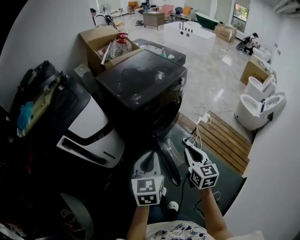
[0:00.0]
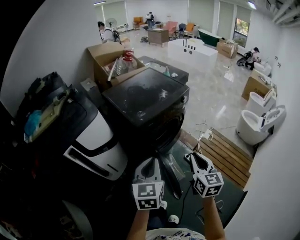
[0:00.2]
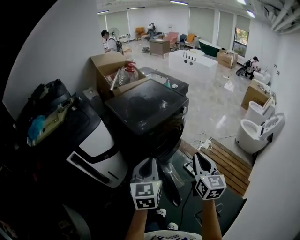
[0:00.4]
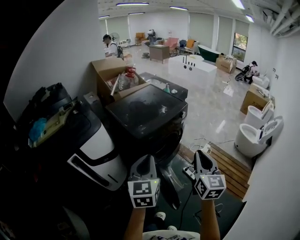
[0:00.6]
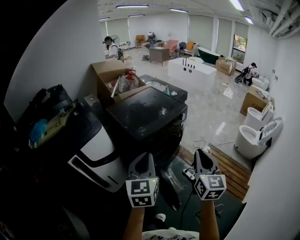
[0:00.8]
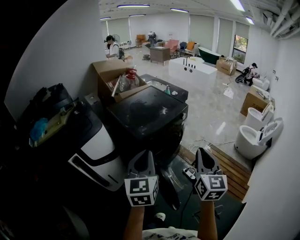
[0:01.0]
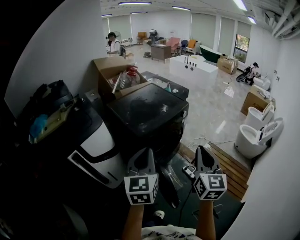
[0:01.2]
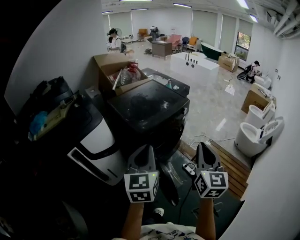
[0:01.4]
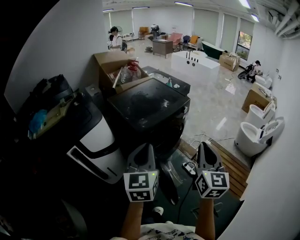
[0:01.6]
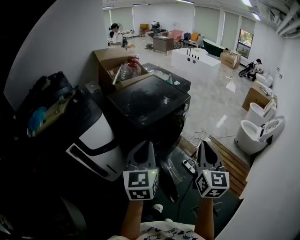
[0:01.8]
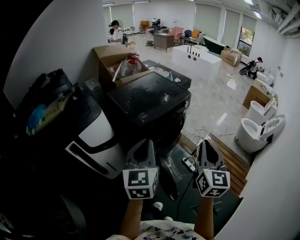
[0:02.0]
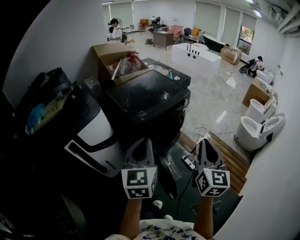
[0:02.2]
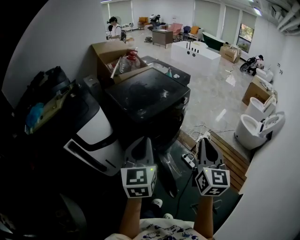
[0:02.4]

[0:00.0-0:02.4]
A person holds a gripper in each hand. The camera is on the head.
0:00.0 to 0:01.2: The grippers both shift upward by approximately 20 cm. The right gripper turns by roughly 20 degrees.
0:01.2 to 0:02.4: The grippers move only a little.

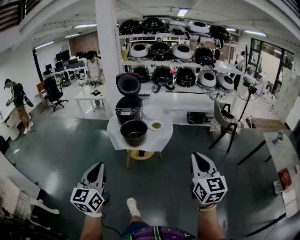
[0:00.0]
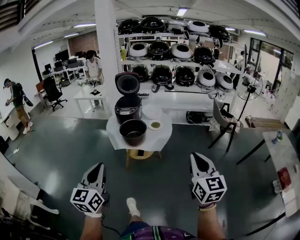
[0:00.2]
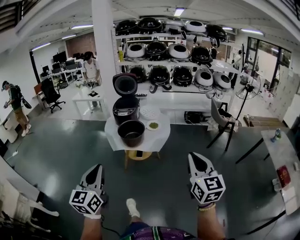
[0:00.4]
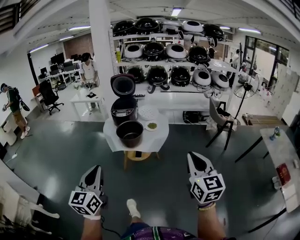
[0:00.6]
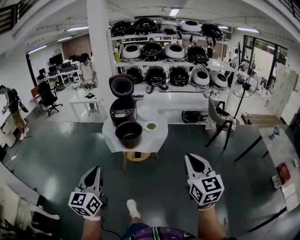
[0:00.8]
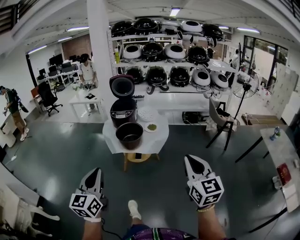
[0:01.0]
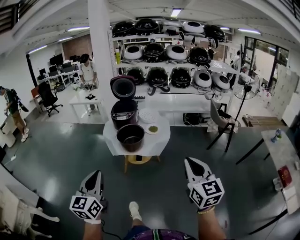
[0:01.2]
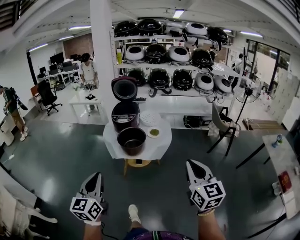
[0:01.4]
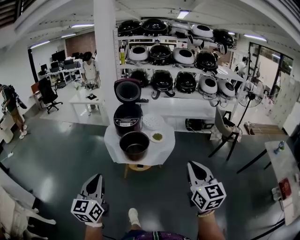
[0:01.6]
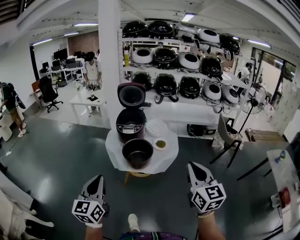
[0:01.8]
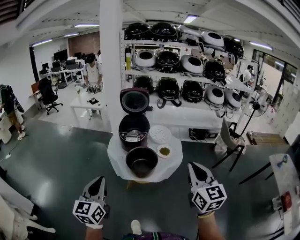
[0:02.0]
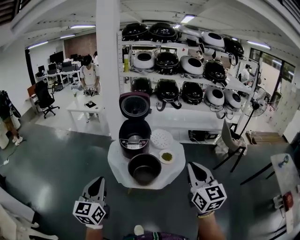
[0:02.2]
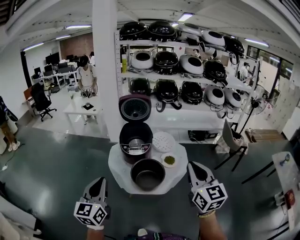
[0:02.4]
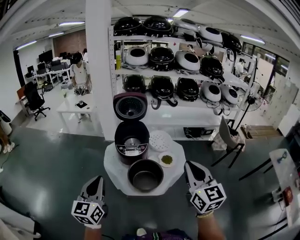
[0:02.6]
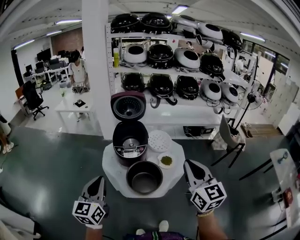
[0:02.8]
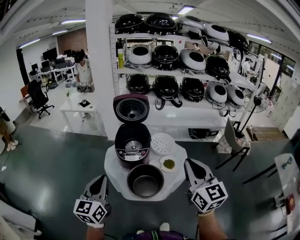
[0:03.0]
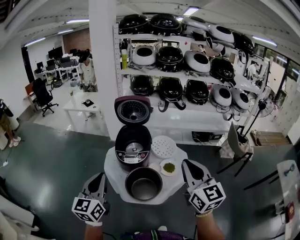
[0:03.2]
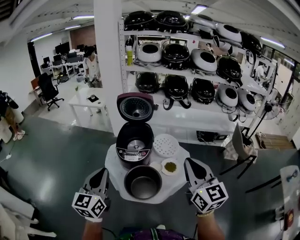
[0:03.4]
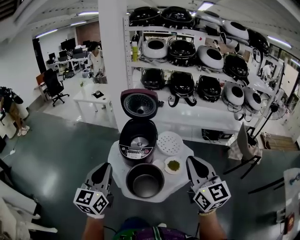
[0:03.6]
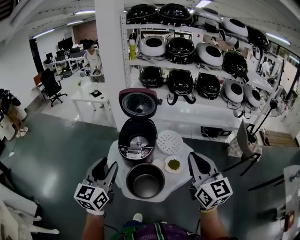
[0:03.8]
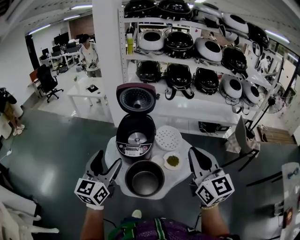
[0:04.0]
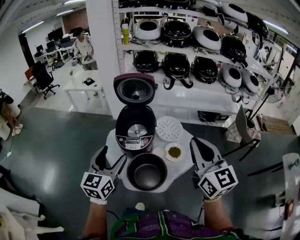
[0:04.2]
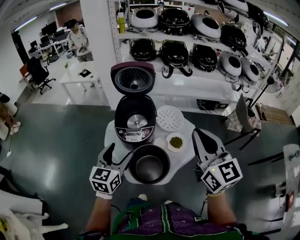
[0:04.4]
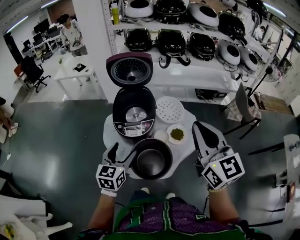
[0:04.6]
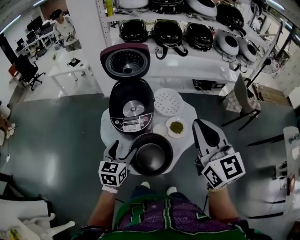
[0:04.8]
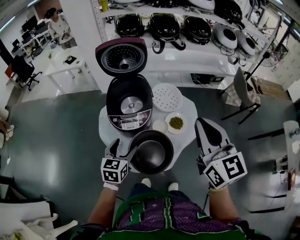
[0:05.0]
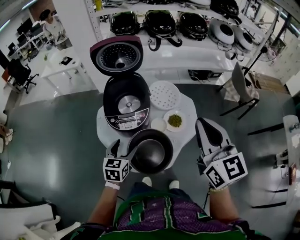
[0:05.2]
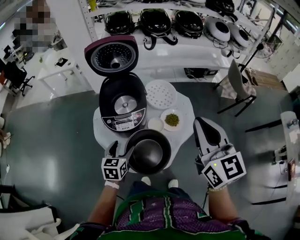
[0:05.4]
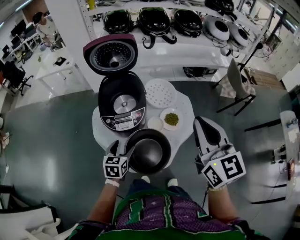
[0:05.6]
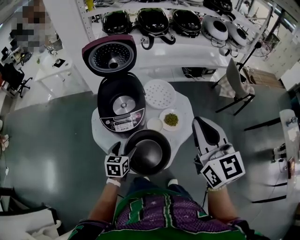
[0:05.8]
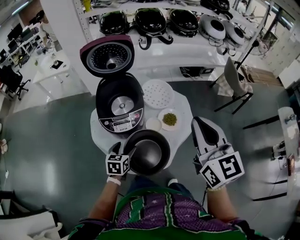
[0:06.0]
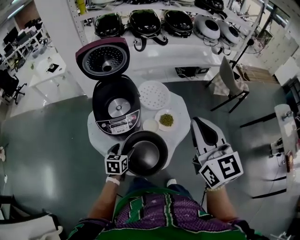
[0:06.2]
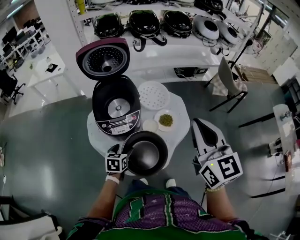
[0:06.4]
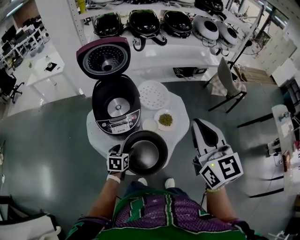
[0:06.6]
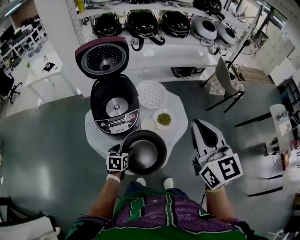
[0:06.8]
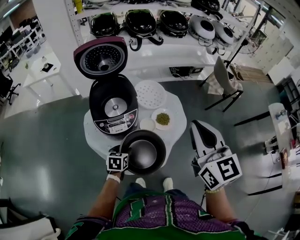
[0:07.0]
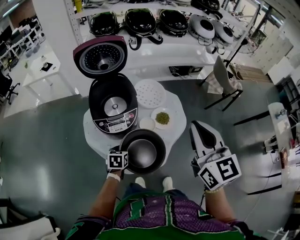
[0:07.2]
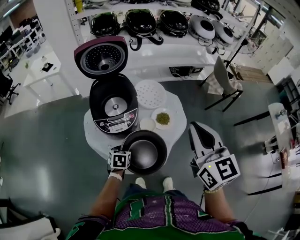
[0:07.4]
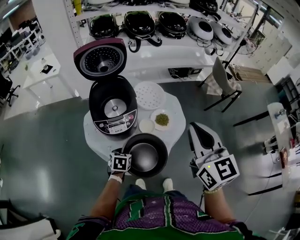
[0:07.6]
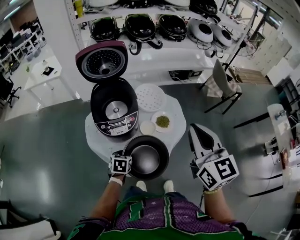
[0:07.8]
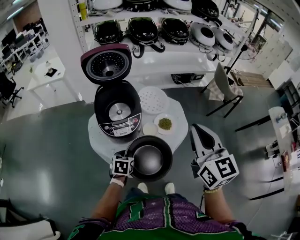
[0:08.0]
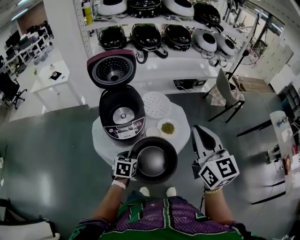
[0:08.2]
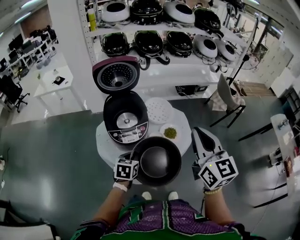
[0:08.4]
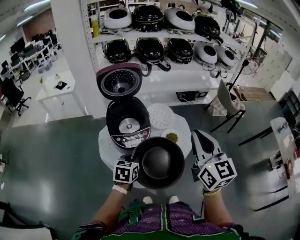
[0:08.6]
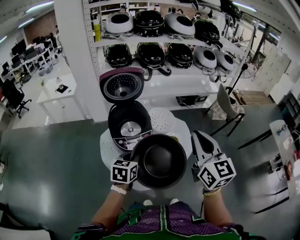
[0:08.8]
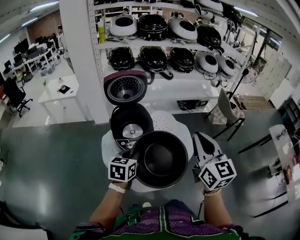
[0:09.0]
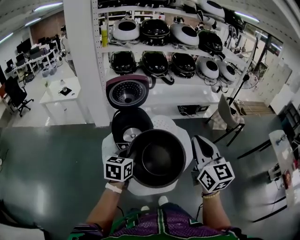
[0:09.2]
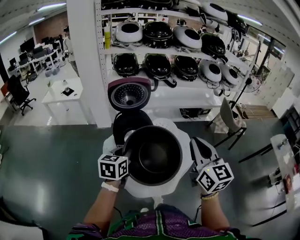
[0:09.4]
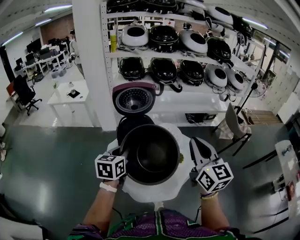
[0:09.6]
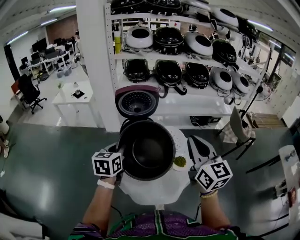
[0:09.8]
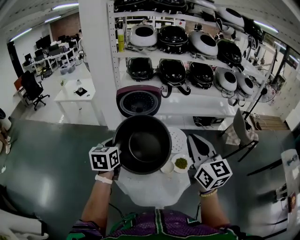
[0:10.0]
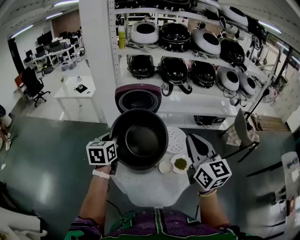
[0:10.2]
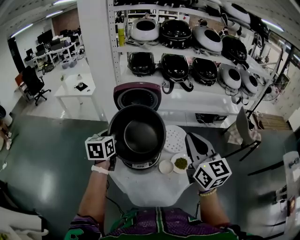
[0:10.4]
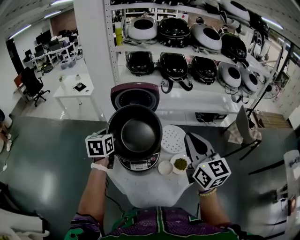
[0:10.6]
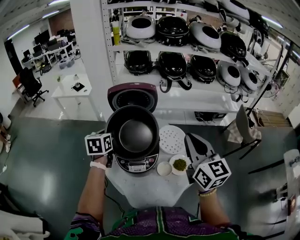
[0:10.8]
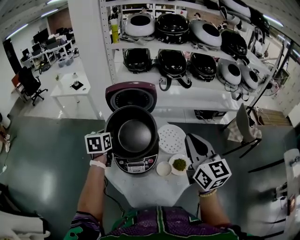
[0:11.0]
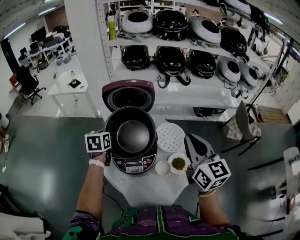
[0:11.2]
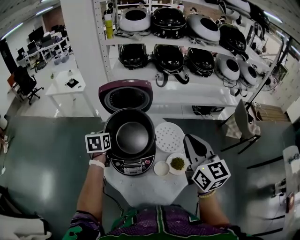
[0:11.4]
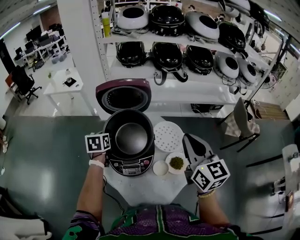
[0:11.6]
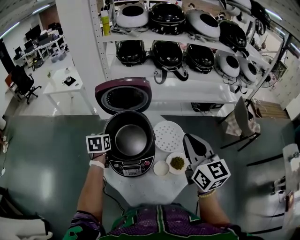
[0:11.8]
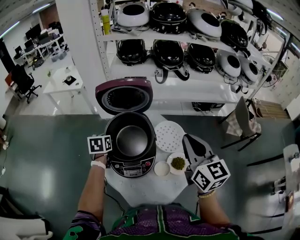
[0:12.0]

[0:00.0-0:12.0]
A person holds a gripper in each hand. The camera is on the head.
0:00.0 to 0:01.6: The grippers both shift forward and to the left by roughly 15 cm.
0:01.6 to 0:03.0: Both grippers travel together forward, some 35 cm.
0:03.0 to 0:04.4: The right gripper travels forward by some 10 cm; the left gripper shifts roughly 20 cm forward, downward and to the right, and opens up.
0:04.4 to 0:06.0: The right gripper moves downward, approximately 10 cm. Meanwhile the left gripper shifts approximately 25 cm downward, and swivels roughly 30 degrees.
0:06.0 to 0:07.6: The left gripper closes its fingers.
0:07.6 to 0:09.0: The left gripper is displaced upward by some 25 cm, and changes its angle by roughly 30 degrees, while the right gripper shifts by roughly 5 cm.
0:09.0 to 0:10.4: The right gripper moves forward, approximately 15 cm; the left gripper goes some 20 cm forward, to the left and upward, and swivels approximately 20 degrees.
0:10.4 to 0:12.0: The right gripper is displaced forward and downward by roughly 10 cm. The left gripper is displaced downward and forward by approximately 20 cm.

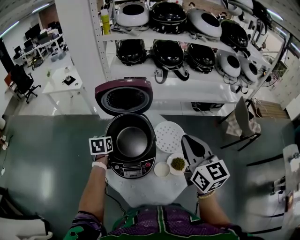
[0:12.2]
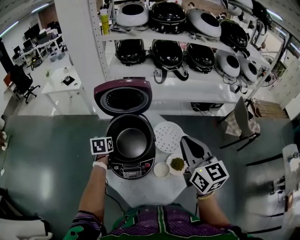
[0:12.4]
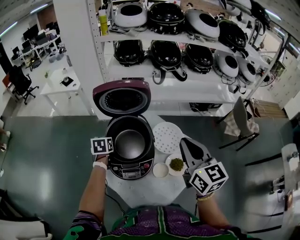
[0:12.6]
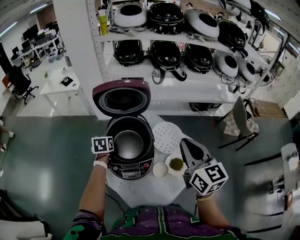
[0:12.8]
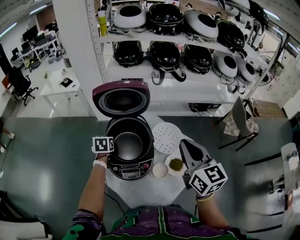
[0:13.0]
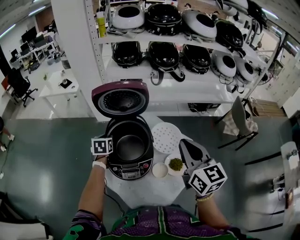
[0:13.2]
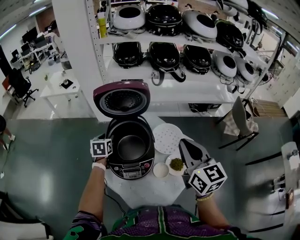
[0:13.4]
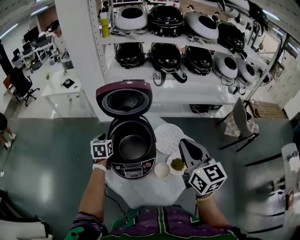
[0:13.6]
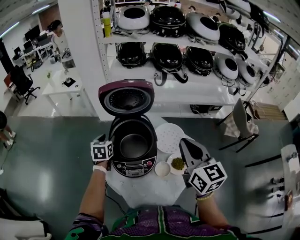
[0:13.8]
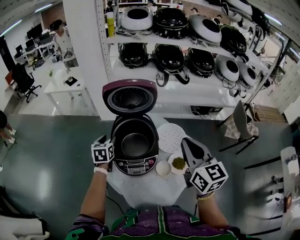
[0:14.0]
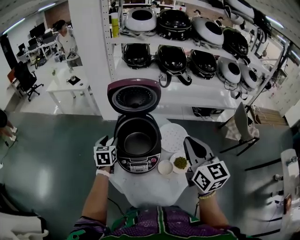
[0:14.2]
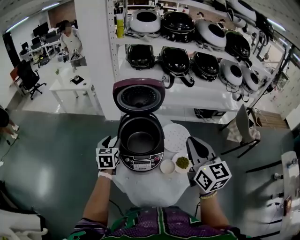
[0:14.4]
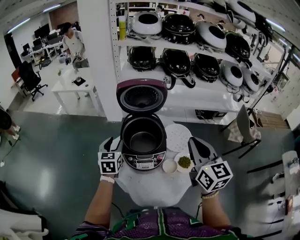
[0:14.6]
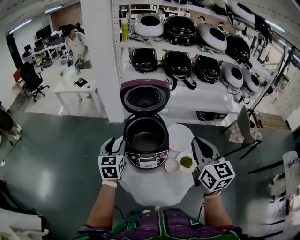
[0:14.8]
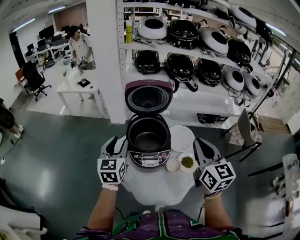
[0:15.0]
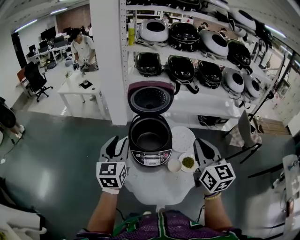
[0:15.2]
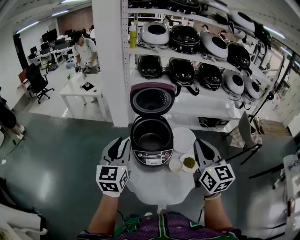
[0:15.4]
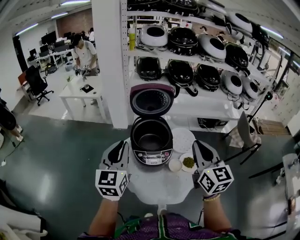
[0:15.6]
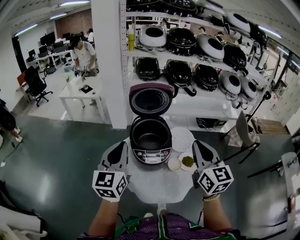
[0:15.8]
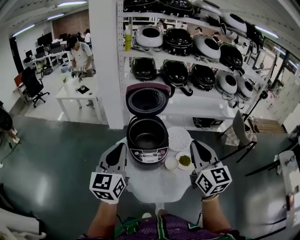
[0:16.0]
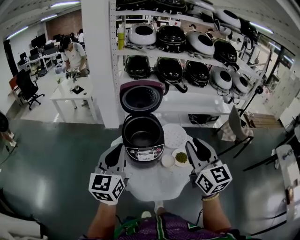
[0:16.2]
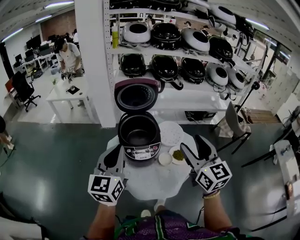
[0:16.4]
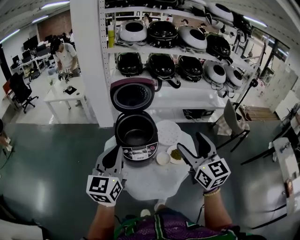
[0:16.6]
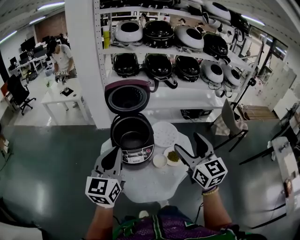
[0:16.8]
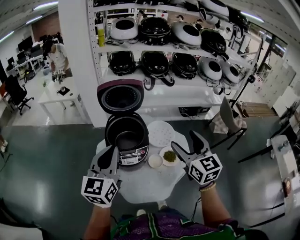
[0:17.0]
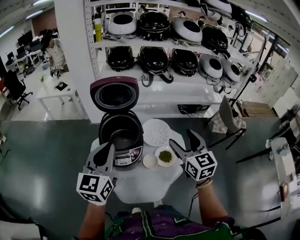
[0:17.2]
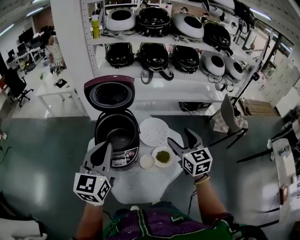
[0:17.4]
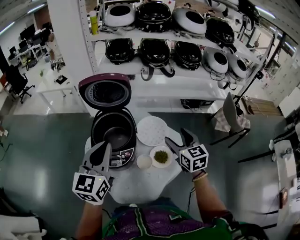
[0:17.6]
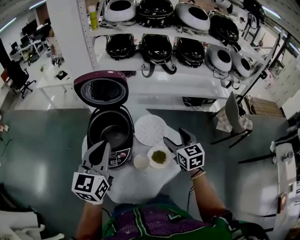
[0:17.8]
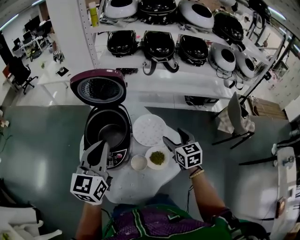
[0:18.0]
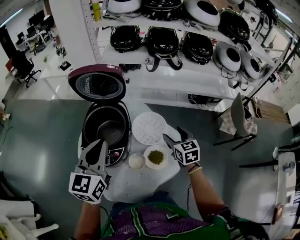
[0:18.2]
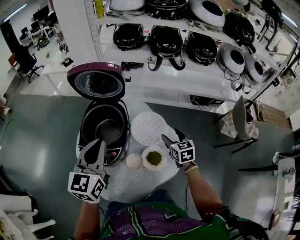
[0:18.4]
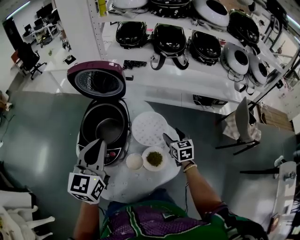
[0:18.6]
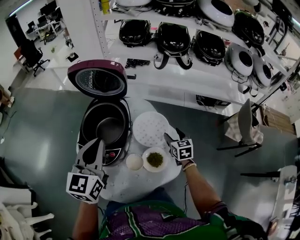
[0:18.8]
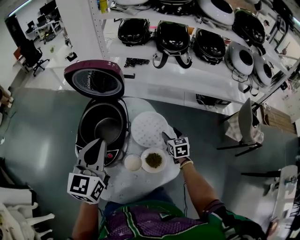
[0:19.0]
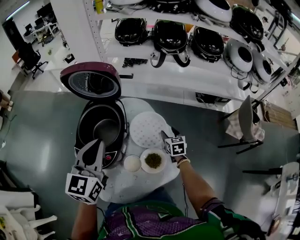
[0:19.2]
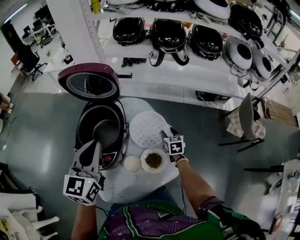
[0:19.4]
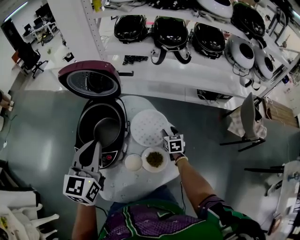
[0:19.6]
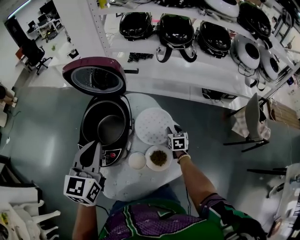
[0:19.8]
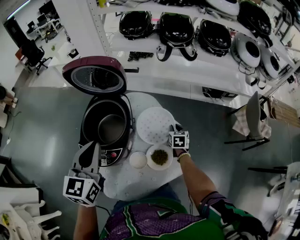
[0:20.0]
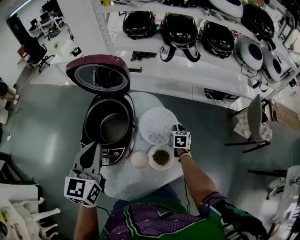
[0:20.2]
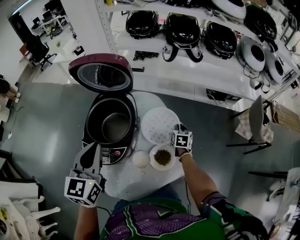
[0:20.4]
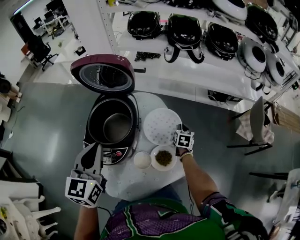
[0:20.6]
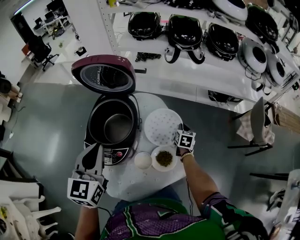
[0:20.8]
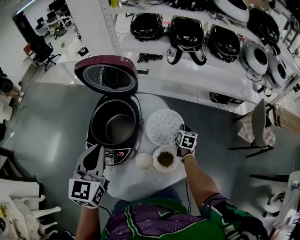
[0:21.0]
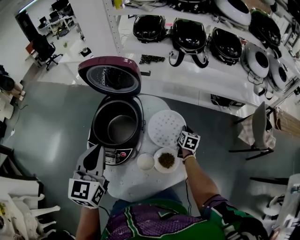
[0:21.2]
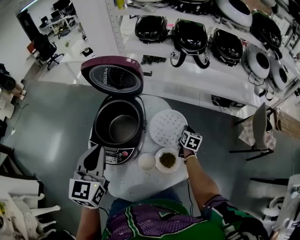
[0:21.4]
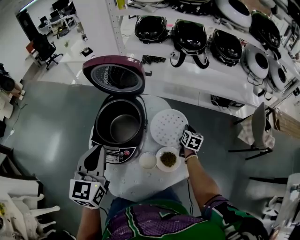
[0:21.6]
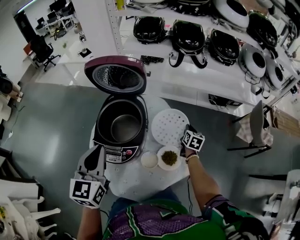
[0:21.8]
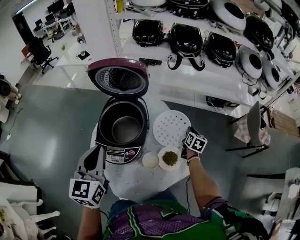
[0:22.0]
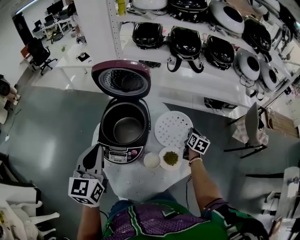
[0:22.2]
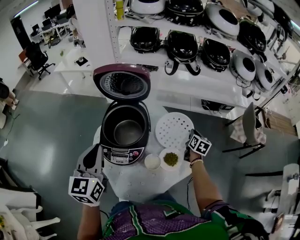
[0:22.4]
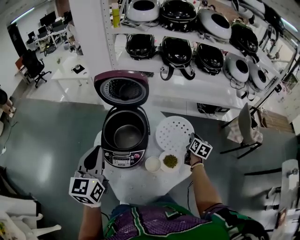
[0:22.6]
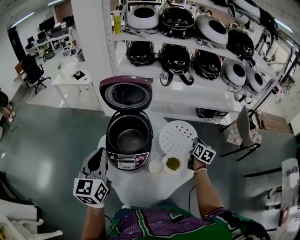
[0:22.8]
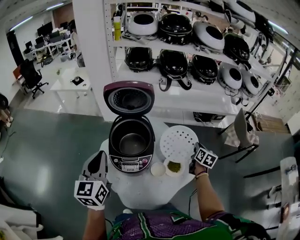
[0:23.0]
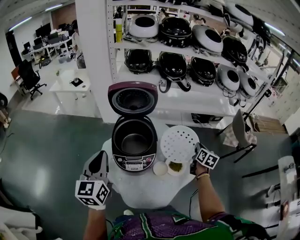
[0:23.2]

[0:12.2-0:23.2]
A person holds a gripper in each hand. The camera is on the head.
0:12.2 to 0:13.8: The left gripper opens.
0:13.8 to 0:15.4: The right gripper travels backward and to the left by about 10 cm; the left gripper heads upward and backward, covering some 30 cm, and angles its fingers upward, by some 30 degrees.
0:15.4 to 0:17.0: Both grippers move to the right, roughly 10 cm. The right gripper opens up.
0:17.0 to 0:18.4: The left gripper goes approximately 20 cm to the right, forward and downward; the right gripper heads downward, forward and to the right, covering roughly 35 cm, and turns by some 30 degrees.
0:18.4 to 0:20.0: The right gripper shifts some 20 cm downward and forward, and closes.
0:20.0 to 0:21.6: The left gripper ends up about 5 cm from where it was.
0:21.6 to 0:23.2: The right gripper is displaced upward and backward by some 20 cm. The left gripper goes about 15 cm to the left.
